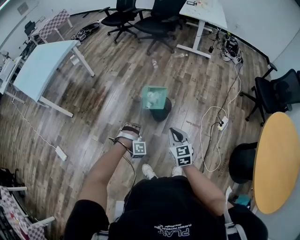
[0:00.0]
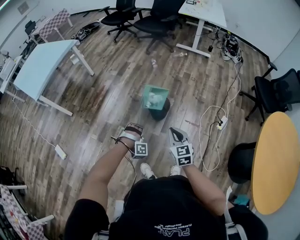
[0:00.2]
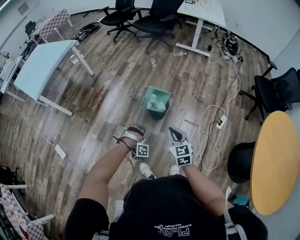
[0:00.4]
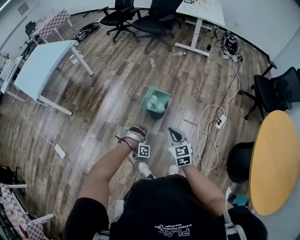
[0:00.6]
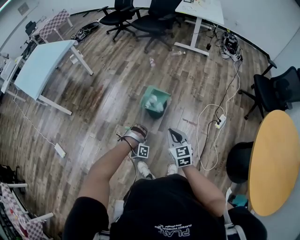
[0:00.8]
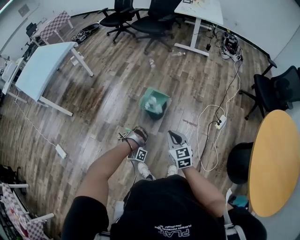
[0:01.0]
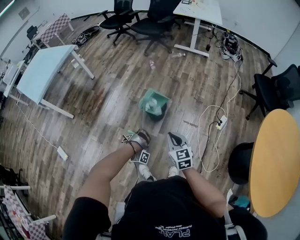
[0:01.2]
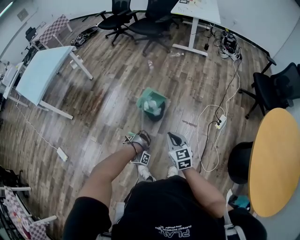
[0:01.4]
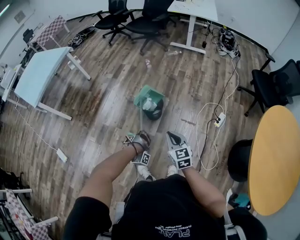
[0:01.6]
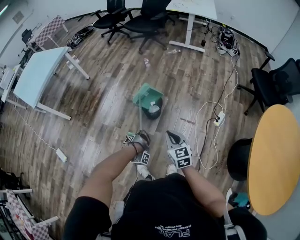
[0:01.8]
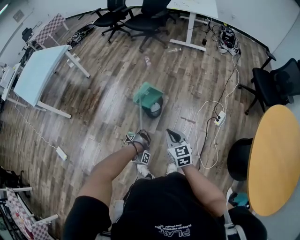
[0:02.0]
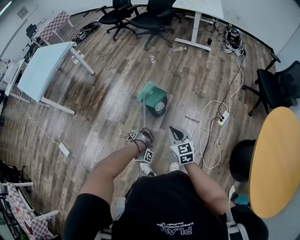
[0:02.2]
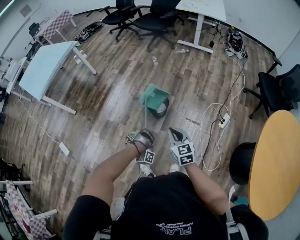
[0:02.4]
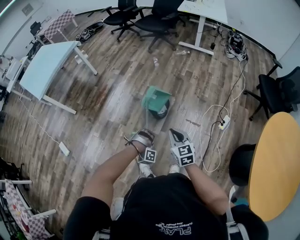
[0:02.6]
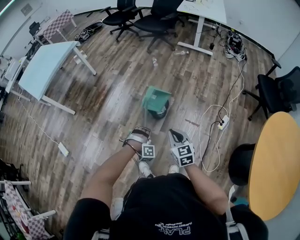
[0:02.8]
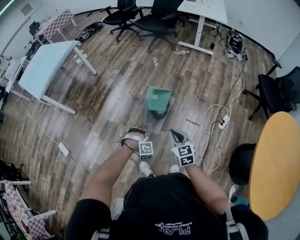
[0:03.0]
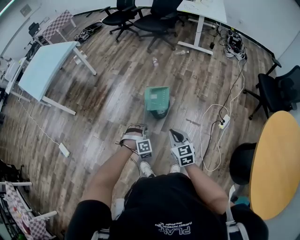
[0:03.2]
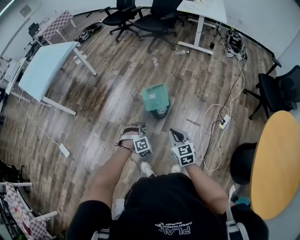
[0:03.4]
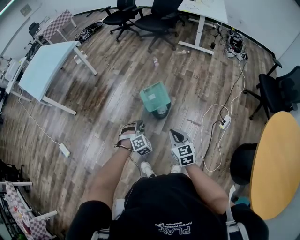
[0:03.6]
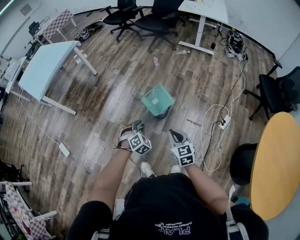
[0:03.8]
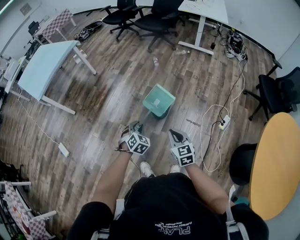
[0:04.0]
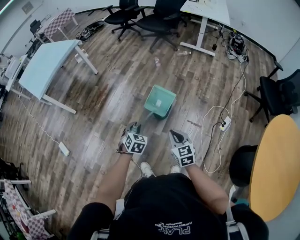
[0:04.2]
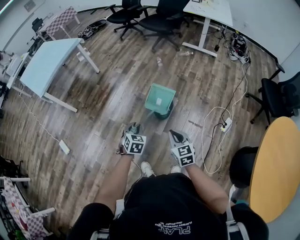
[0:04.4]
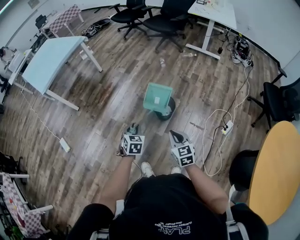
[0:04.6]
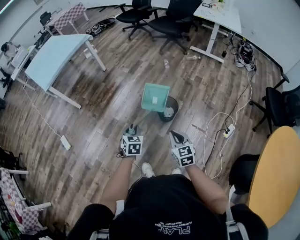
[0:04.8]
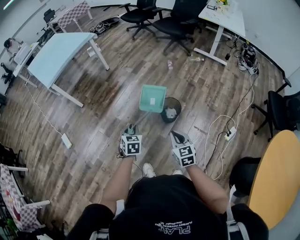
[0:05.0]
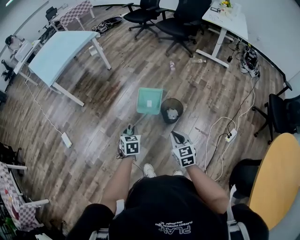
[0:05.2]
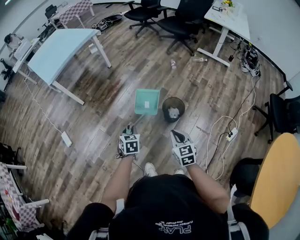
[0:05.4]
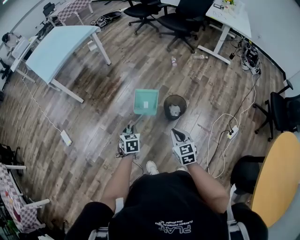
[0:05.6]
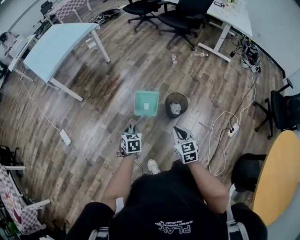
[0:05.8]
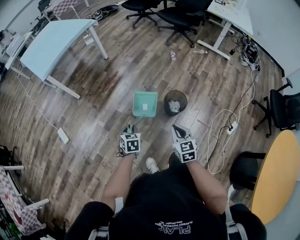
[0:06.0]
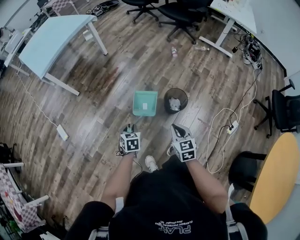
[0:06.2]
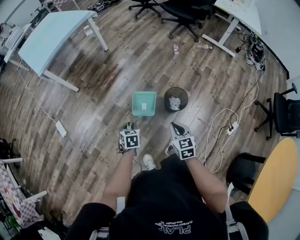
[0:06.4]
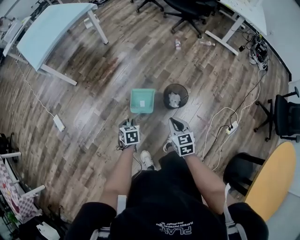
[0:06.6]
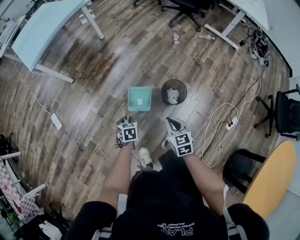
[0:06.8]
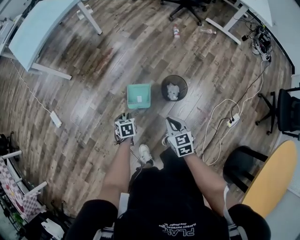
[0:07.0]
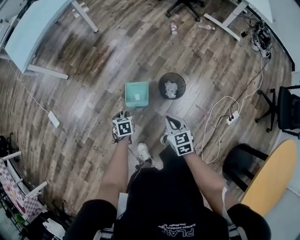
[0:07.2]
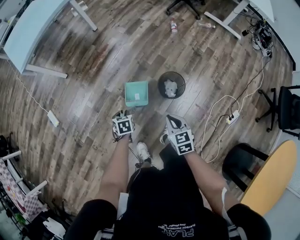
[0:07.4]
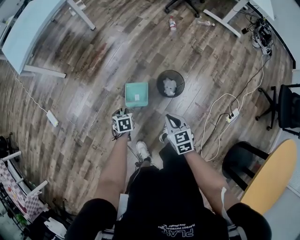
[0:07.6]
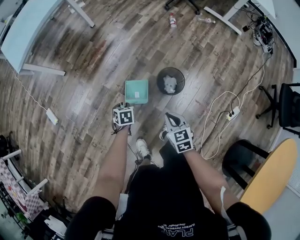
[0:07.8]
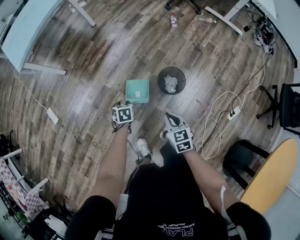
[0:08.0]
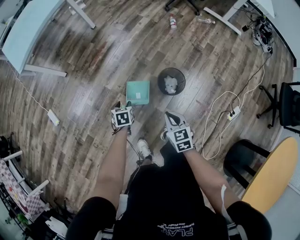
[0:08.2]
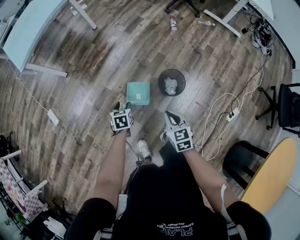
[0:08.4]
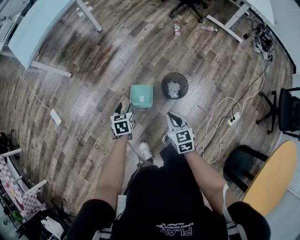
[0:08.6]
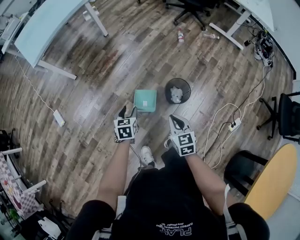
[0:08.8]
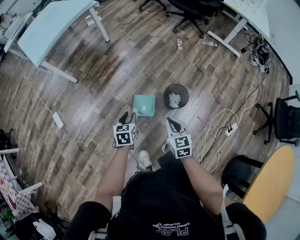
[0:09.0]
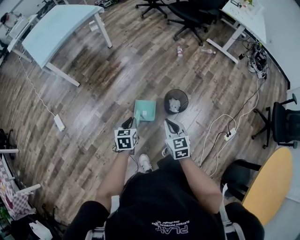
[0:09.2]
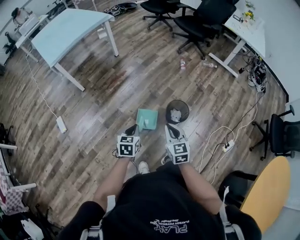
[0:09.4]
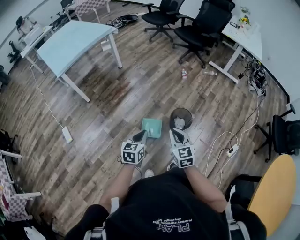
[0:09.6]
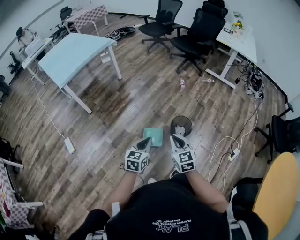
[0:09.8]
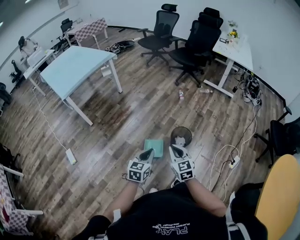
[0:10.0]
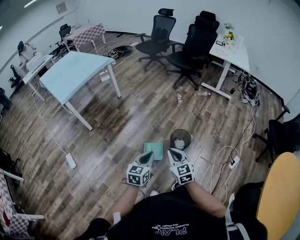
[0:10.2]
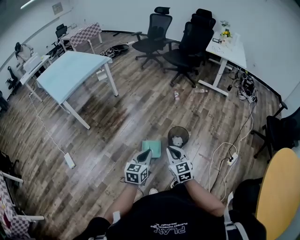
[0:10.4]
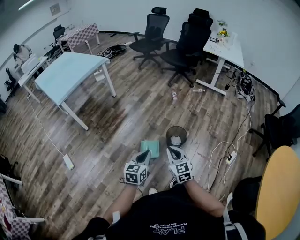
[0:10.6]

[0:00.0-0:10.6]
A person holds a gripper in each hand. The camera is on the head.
0:00.0 to 0:01.6: The left gripper shifts roughly 15 cm to the right, backward and downward, and rotates around the line of its fingers by some 50 degrees, clockwise from behind. Meanwhile the right gripper moves to the right, approximately 10 cm.
0:01.6 to 0:03.0: The left gripper heads upward, covering some 5 cm, and twists about 60 degrees counterclockwise, seen from behind.
0:03.0 to 0:04.6: The left gripper moves to the left, upward and forward, roughly 15 cm, and rotates around the line of its fingers by approximately 90 degrees, counterclockwise from behind.
0:04.6 to 0:06.0: The right gripper goes about 15 cm to the left and forward; the left gripper moves to the left and downward, some 15 cm.
0:06.0 to 0:07.6: The two grippers go about 15 cm downward, forward and to the right.
0:07.6 to 0:09.0: The left gripper is displaced upward by about 15 cm, and turns by about 20 degrees. The right gripper is displaced upward and to the left by roughly 10 cm.
0:09.0 to 0:10.6: Both grippers move upward and backward, about 20 cm. The left gripper rotates roughly 30 degrees, and closes.

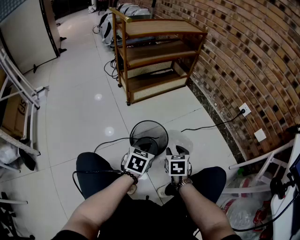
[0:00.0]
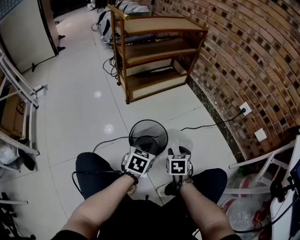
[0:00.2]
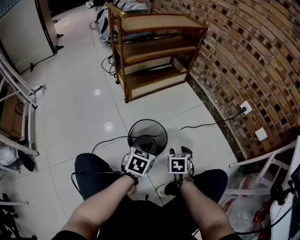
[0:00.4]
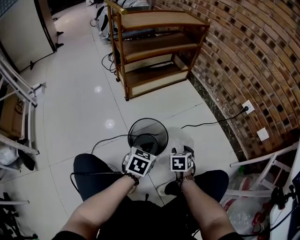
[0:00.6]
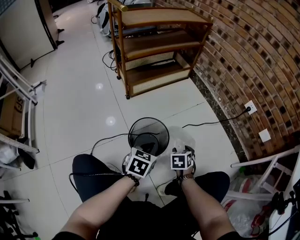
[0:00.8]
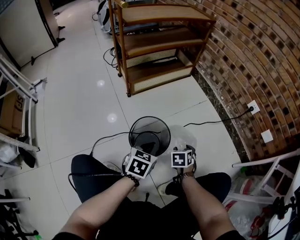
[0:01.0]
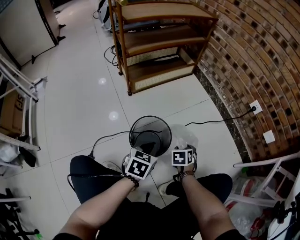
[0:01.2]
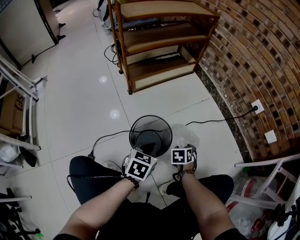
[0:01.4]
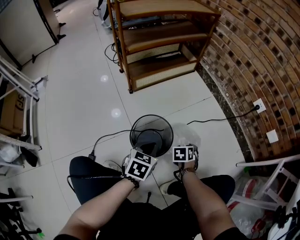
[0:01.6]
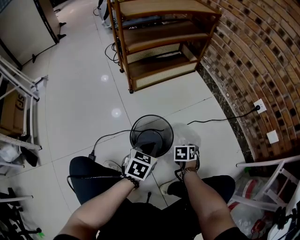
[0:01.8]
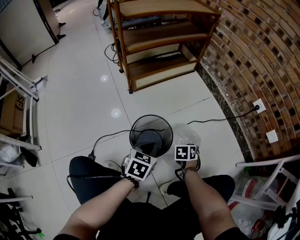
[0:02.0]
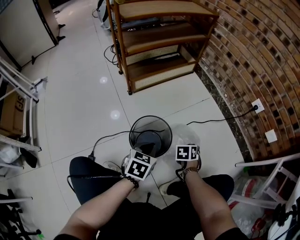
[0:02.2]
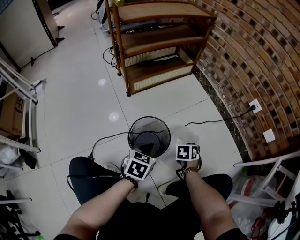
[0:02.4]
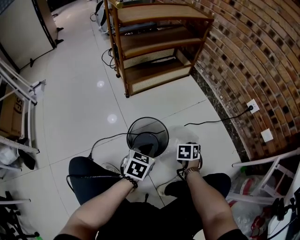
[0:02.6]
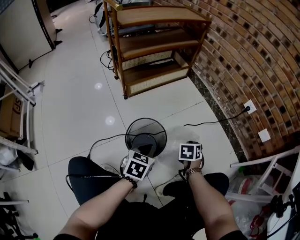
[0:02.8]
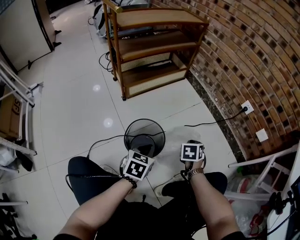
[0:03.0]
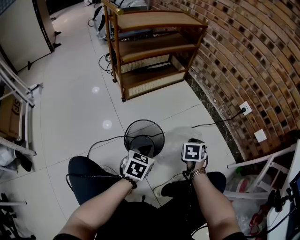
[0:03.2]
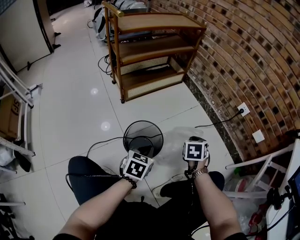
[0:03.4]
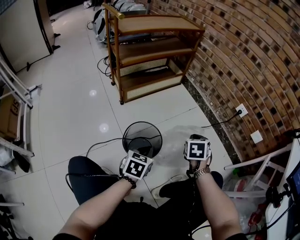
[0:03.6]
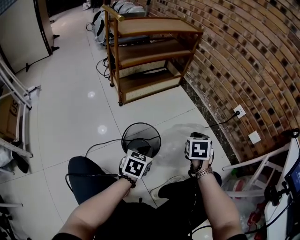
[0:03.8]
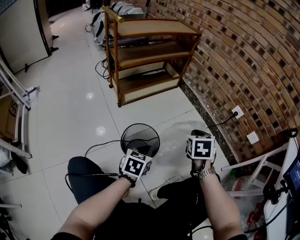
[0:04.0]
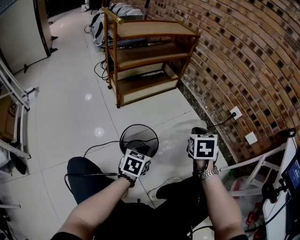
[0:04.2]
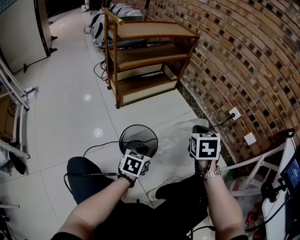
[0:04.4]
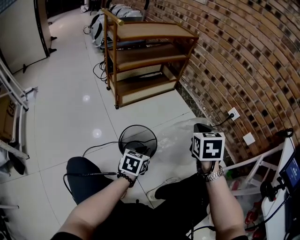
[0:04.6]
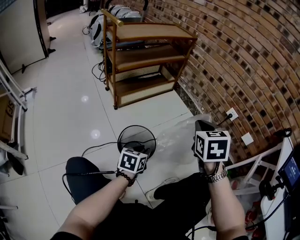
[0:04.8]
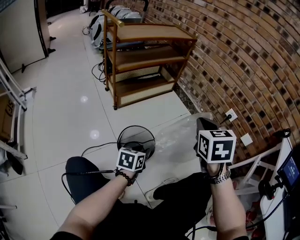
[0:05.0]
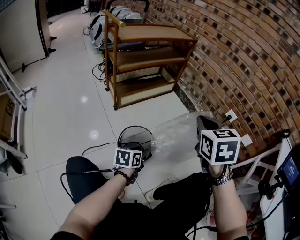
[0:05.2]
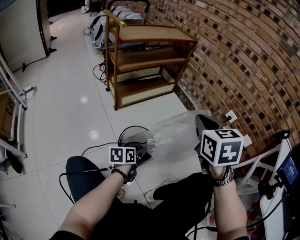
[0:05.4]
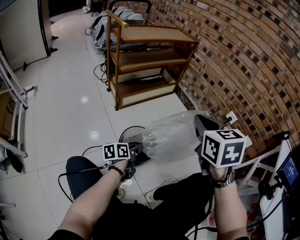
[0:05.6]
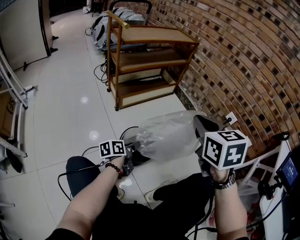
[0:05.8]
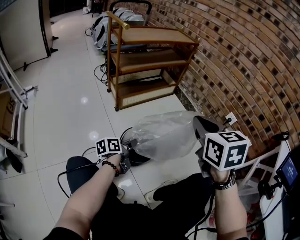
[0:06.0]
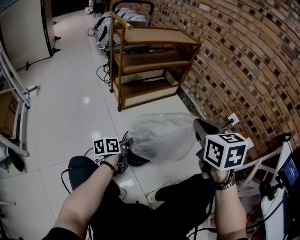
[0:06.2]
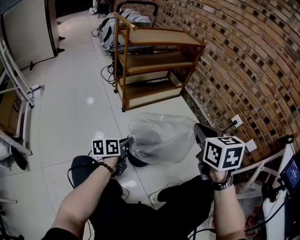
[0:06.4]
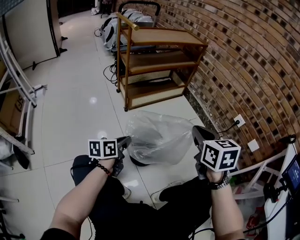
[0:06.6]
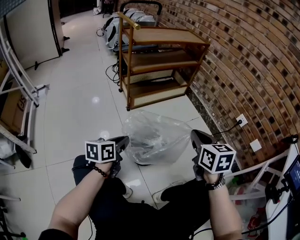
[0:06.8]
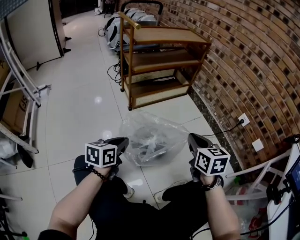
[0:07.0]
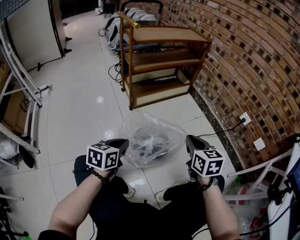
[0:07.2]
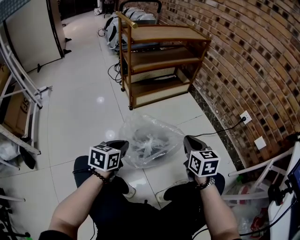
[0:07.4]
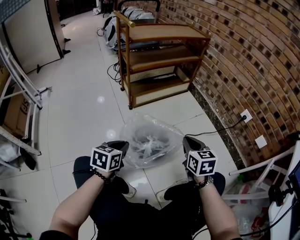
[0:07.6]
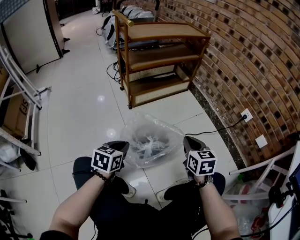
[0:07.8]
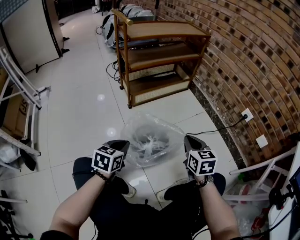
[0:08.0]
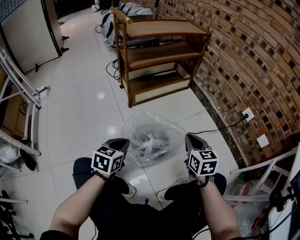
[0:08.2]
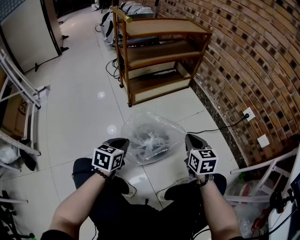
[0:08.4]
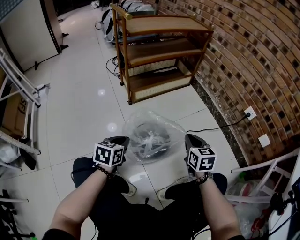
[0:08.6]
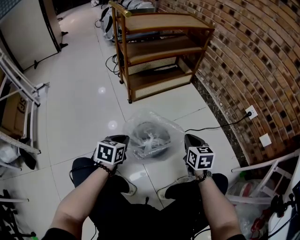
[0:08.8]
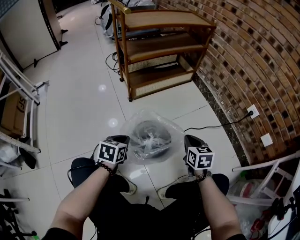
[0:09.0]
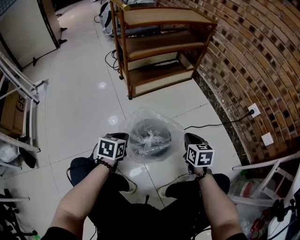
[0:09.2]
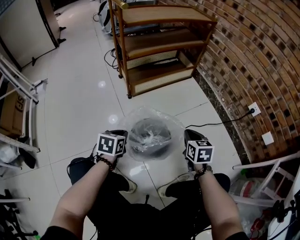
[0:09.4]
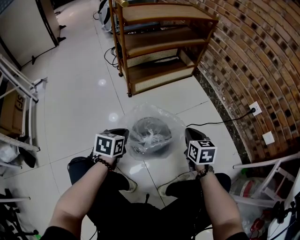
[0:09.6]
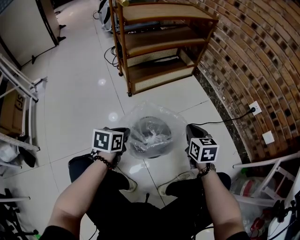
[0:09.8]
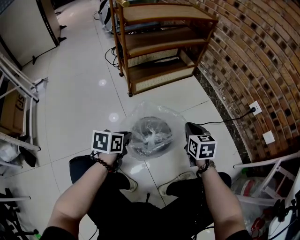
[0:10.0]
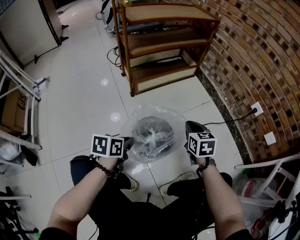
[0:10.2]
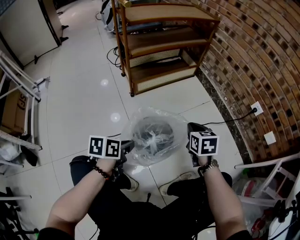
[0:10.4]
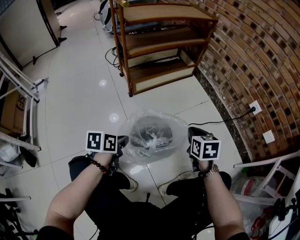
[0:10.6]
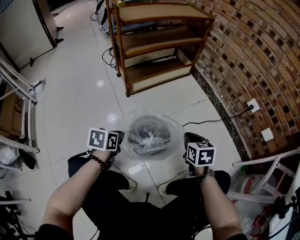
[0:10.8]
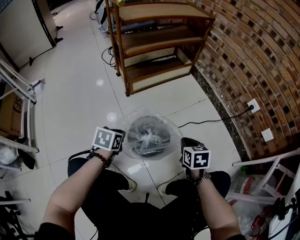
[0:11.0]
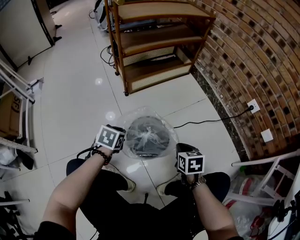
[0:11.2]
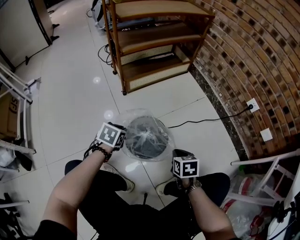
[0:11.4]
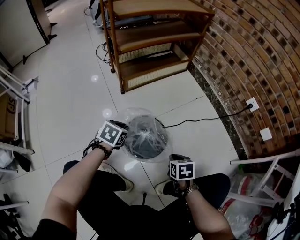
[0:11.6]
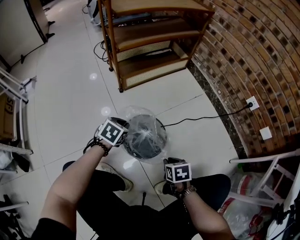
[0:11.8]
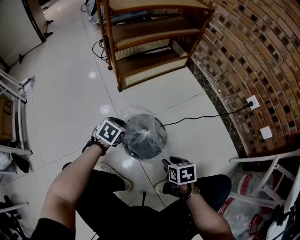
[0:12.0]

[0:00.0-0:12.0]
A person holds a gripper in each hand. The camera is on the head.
0:00.0 to 0:01.6: The right gripper travels downward and forward by about 15 cm, and swivels about 20 degrees.
0:01.6 to 0:03.0: The right gripper travels upward by about 10 cm, and closes its fingers.
0:03.0 to 0:04.4: The right gripper travels upward by some 20 cm.
0:04.4 to 0:06.0: The left gripper is displaced to the left by about 10 cm, rotates around the line of its fingers by about 50 degrees, counterclockwise from behind, and opens its fingers, while the right gripper shifts some 15 cm upward, backward and to the left, and changes its angle by roughly 20 degrees.
0:06.0 to 0:07.6: The left gripper is displaced backward, upward and to the left by approximately 10 cm, rolls clockwise, seen from behind, by about 40 degrees, and closes its fingers. The right gripper heads downward, covering approximately 20 cm.
0:07.6 to 0:09.0: Both grippers travel together downward, approximately 10 cm.
0:09.0 to 0:10.4: The left gripper ends up some 5 cm from where it was, and turns by approximately 30 degrees.
0:10.4 to 0:12.0: The left gripper travels forward and downward by about 15 cm, and rolls clockwise, seen from behind, by approximately 40 degrees, while the right gripper travels backward and downward by about 20 cm, swivels roughly 20 degrees, and opens up.

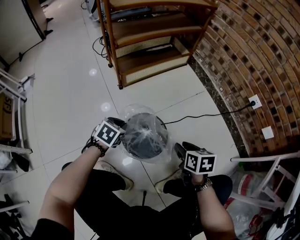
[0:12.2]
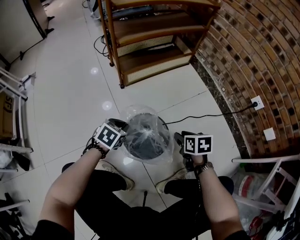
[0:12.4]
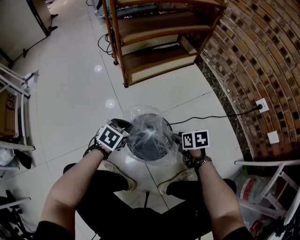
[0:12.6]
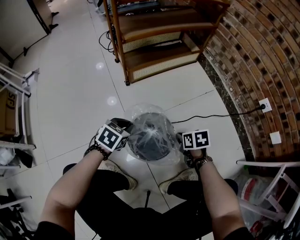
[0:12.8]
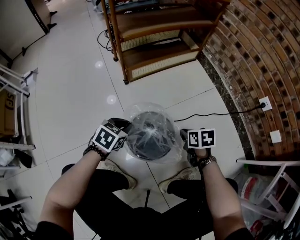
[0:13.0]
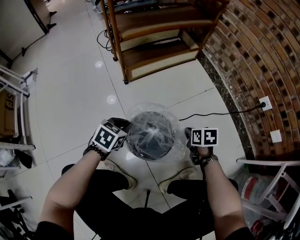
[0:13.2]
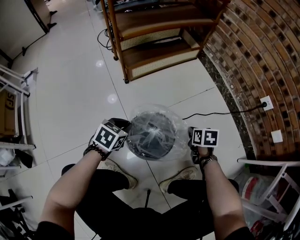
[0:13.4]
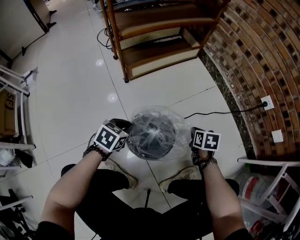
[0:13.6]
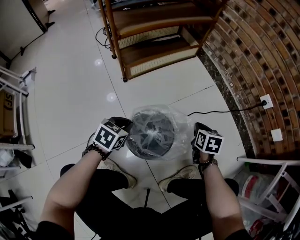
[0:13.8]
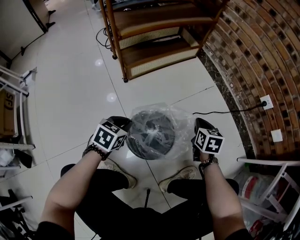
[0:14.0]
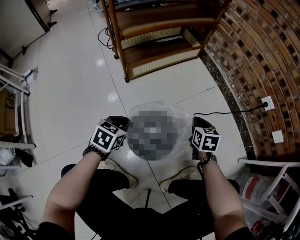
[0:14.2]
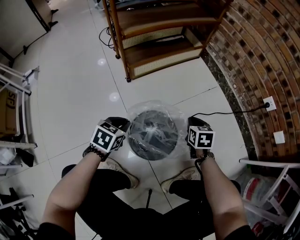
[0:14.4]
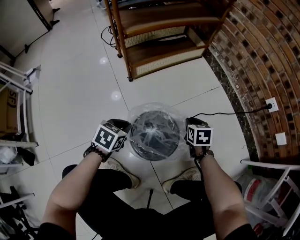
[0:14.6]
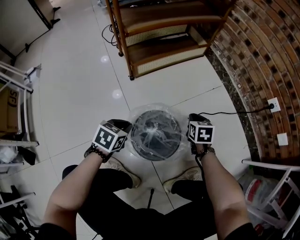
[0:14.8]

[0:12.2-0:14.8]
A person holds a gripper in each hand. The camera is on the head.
0:12.2 to 0:13.4: The right gripper moves downward and forward, about 15 cm, and closes.
0:13.4 to 0:14.8: The right gripper shifts about 5 cm to the left and forward.
